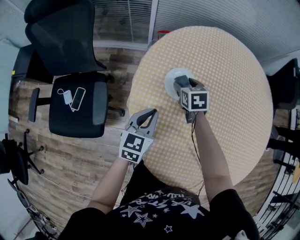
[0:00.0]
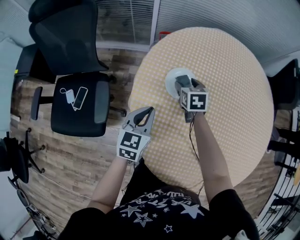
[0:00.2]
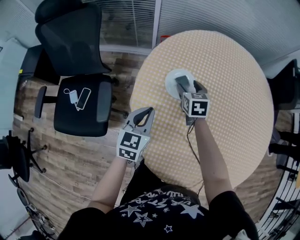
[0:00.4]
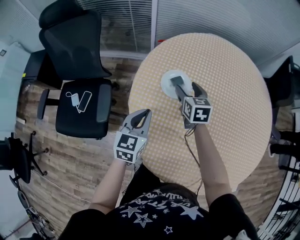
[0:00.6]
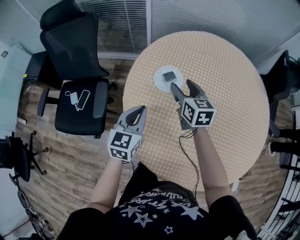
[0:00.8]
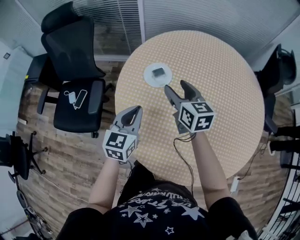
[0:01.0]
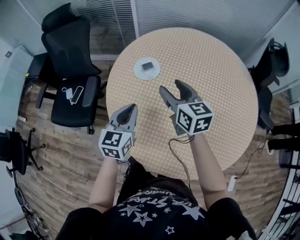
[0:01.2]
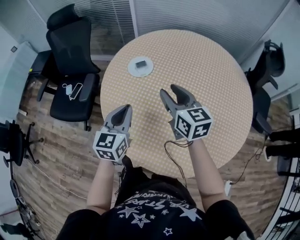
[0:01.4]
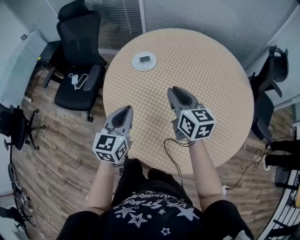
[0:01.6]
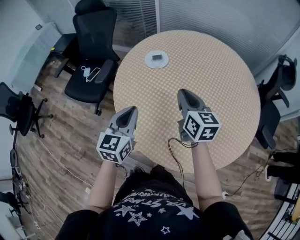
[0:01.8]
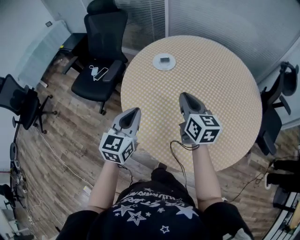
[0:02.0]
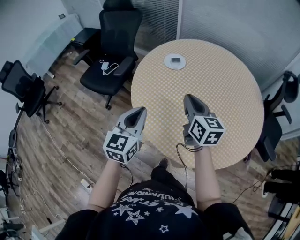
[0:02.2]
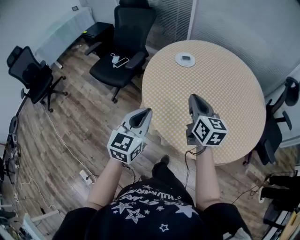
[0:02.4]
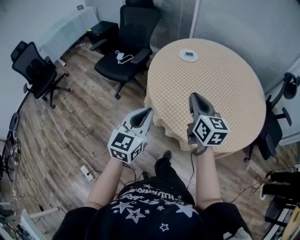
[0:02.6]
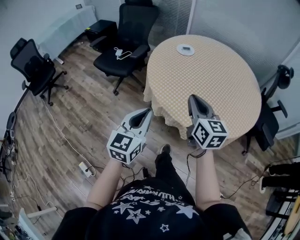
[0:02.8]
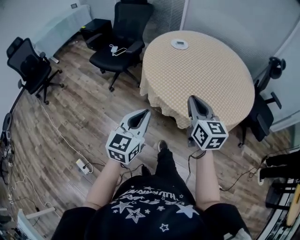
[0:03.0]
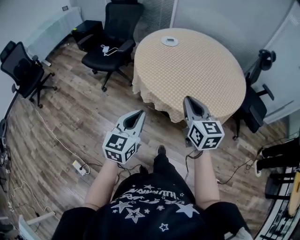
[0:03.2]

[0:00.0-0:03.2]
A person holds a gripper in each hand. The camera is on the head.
0:00.0 to 0:01.6: The left gripper is displaced backward, to the right and upward by some 30 cm, and changes its angle by some 20 degrees. Meanwhile the right gripper heads backward, upward and to the right, covering approximately 40 cm, points its fingers some 40 degrees further upward, and closes.
0:01.6 to 0:03.2: Both grippers are carried backward, approximately 40 cm.

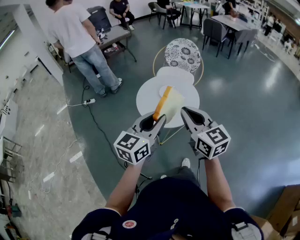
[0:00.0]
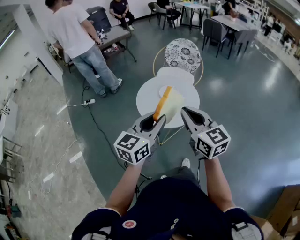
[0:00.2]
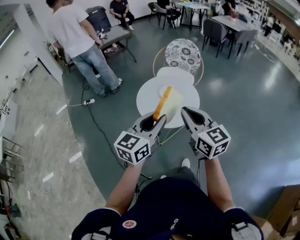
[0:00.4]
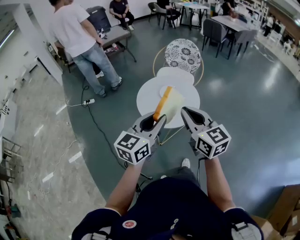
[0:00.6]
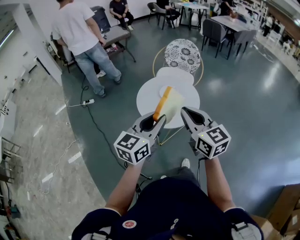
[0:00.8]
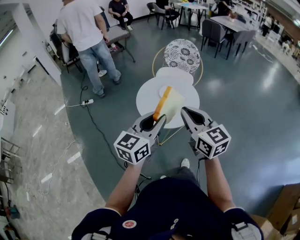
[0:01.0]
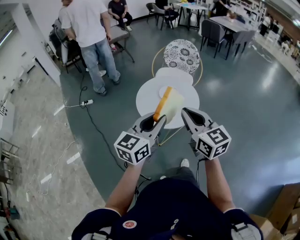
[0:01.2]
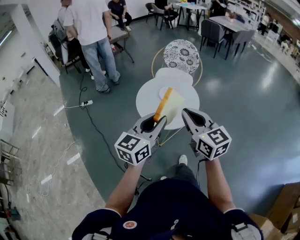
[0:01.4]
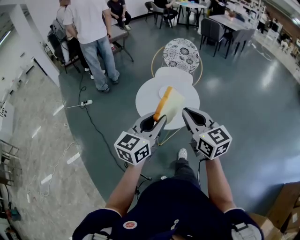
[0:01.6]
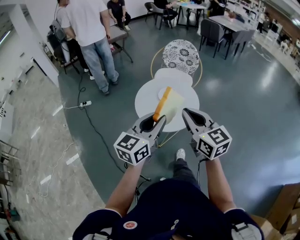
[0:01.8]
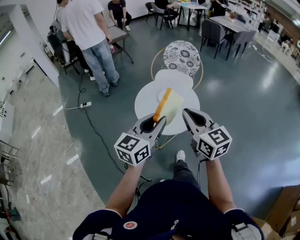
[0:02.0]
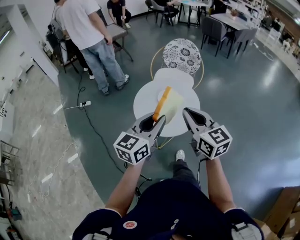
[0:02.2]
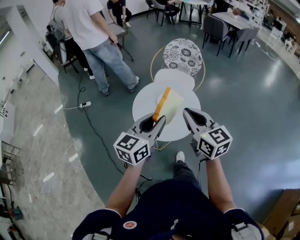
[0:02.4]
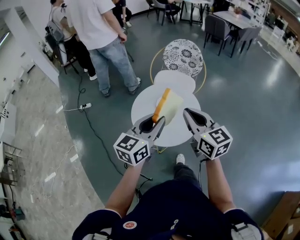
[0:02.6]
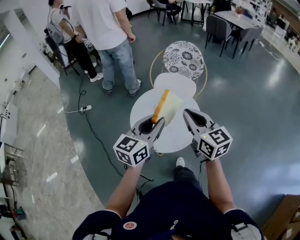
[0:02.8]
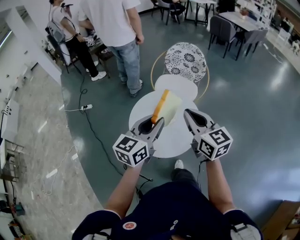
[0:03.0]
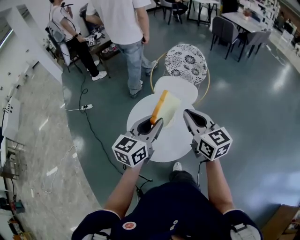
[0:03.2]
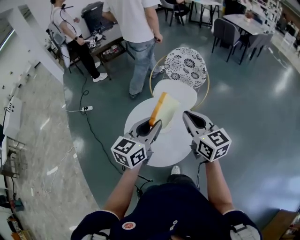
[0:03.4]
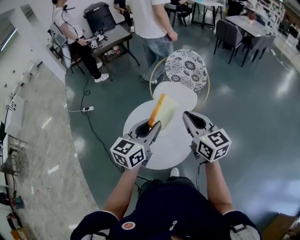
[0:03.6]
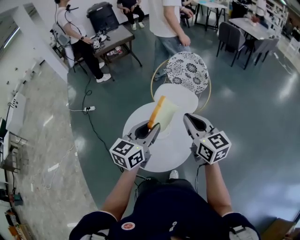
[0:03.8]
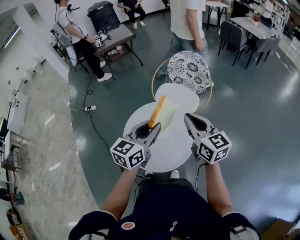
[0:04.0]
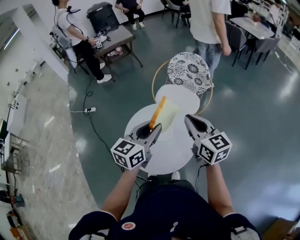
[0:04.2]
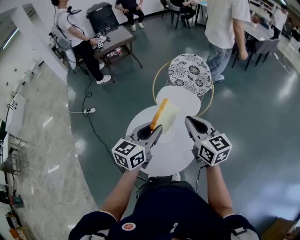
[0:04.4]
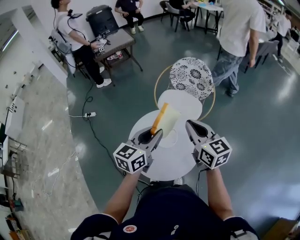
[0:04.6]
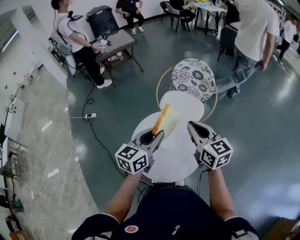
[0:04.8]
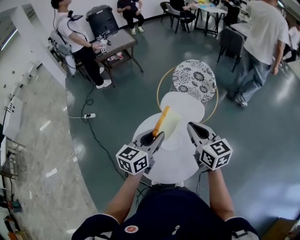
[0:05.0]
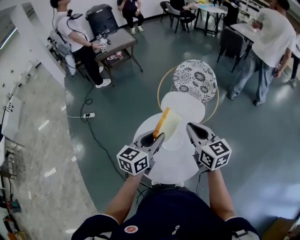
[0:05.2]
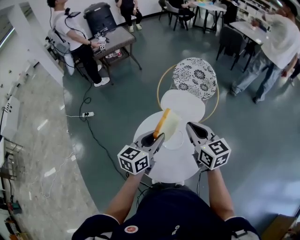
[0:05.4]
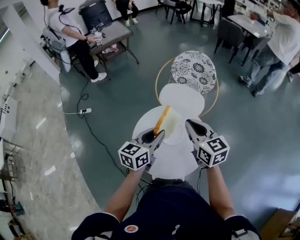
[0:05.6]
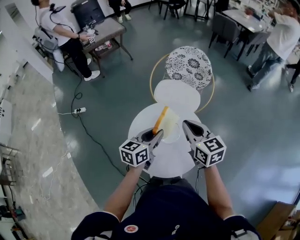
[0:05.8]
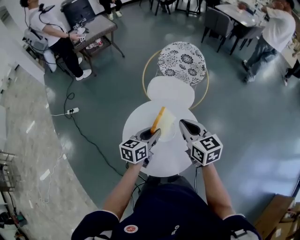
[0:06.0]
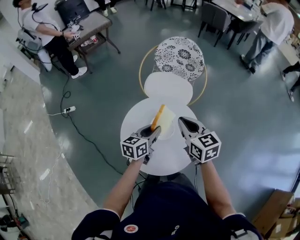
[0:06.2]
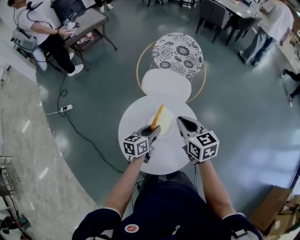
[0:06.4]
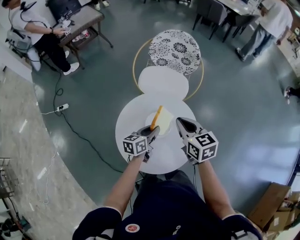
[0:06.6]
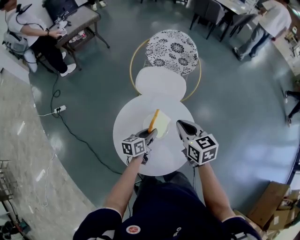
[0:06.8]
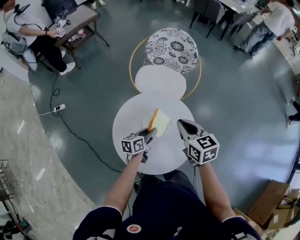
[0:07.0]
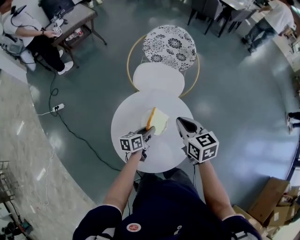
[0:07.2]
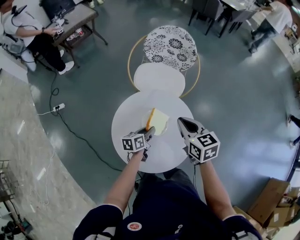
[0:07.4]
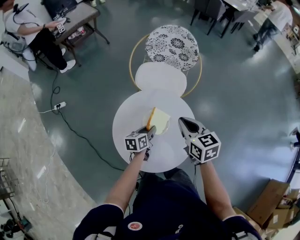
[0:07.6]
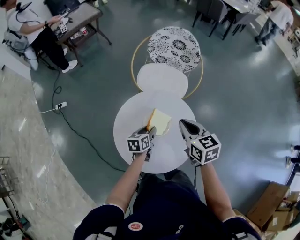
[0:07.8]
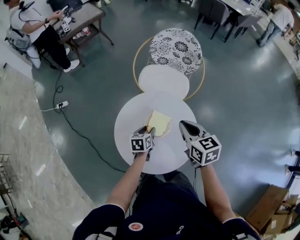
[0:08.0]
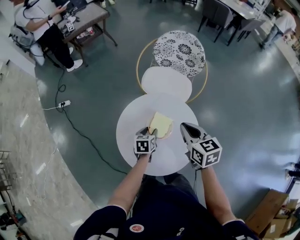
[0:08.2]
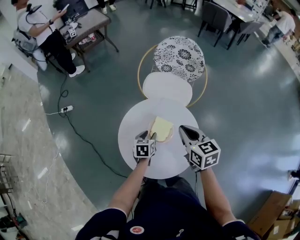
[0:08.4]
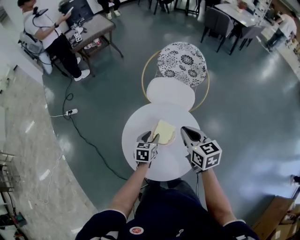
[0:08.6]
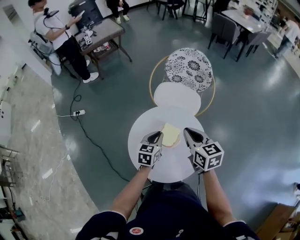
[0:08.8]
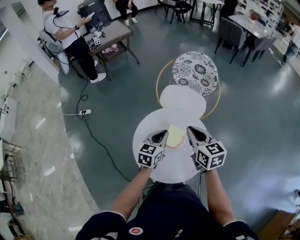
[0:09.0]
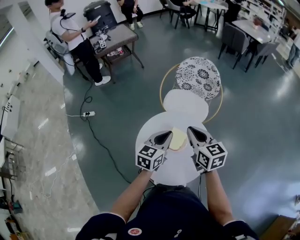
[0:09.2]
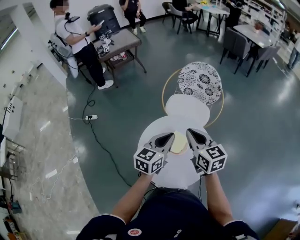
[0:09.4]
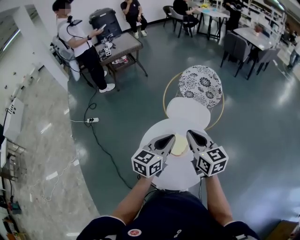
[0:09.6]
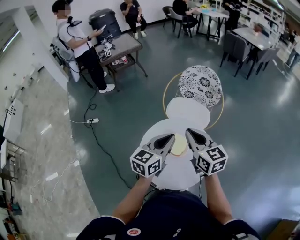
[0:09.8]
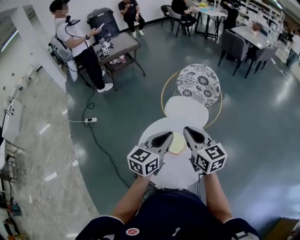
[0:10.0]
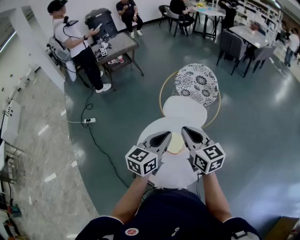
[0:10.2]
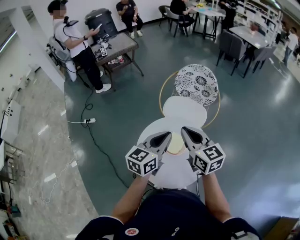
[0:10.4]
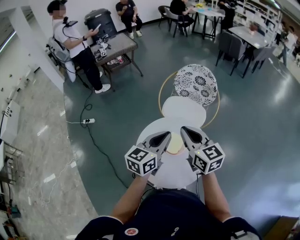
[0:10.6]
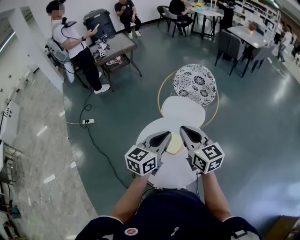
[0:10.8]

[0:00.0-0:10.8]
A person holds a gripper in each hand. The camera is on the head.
0:00.0 to 0:01.6: There are only small adjustments of the grippers.
0:01.6 to 0:03.0: The grippers both shift forward by approximately 20 cm.
0:03.0 to 0:04.6: Both grippers travel together forward, some 10 cm.
0:04.6 to 0:06.2: The right gripper shifts about 10 cm downward and to the left; the left gripper travels downward by approximately 15 cm, and swivels about 20 degrees.
0:06.2 to 0:07.8: The left gripper goes roughly 15 cm downward, and rotates some 20 degrees.
0:07.8 to 0:09.2: The right gripper is displaced upward by approximately 5 cm, while the left gripper heads upward, covering about 20 cm, rotates about 30 degrees, and closes.
0:09.2 to 0:10.8: Both grippers move upward, some 10 cm.

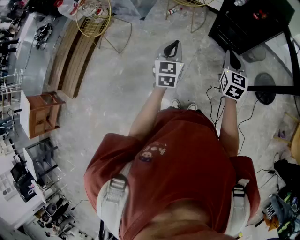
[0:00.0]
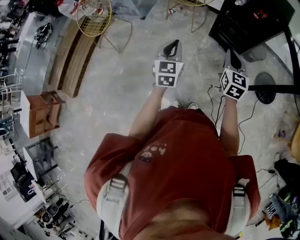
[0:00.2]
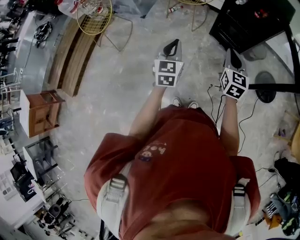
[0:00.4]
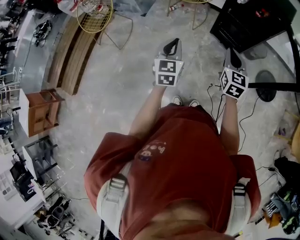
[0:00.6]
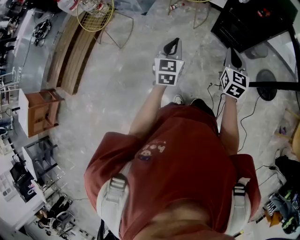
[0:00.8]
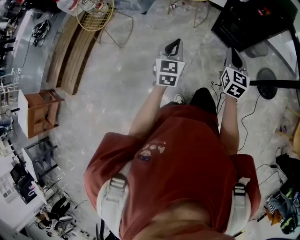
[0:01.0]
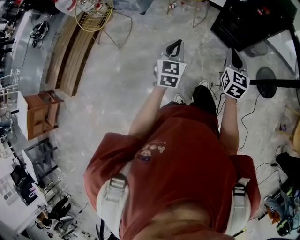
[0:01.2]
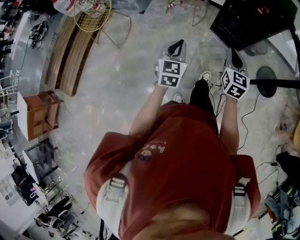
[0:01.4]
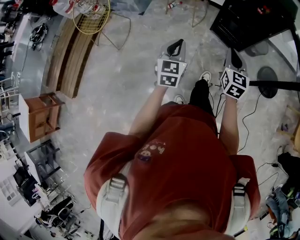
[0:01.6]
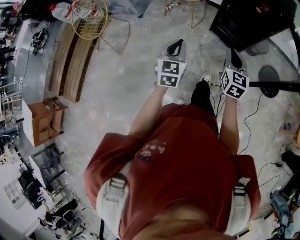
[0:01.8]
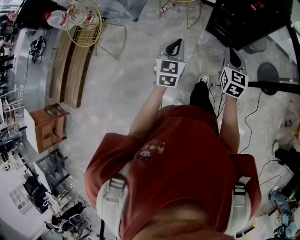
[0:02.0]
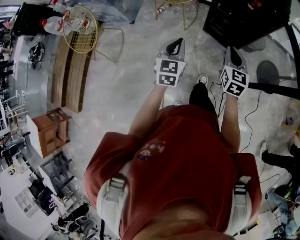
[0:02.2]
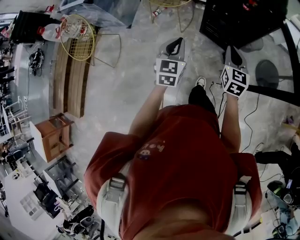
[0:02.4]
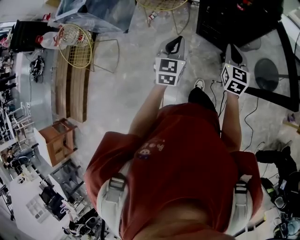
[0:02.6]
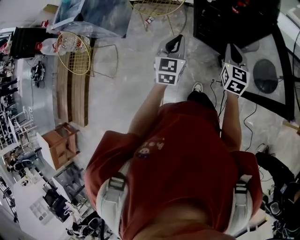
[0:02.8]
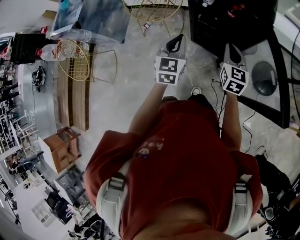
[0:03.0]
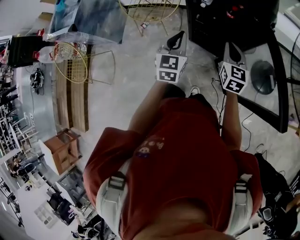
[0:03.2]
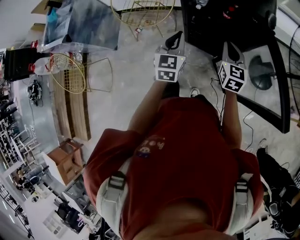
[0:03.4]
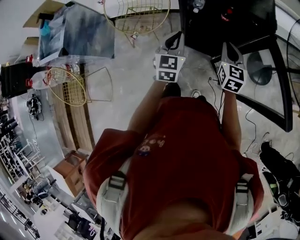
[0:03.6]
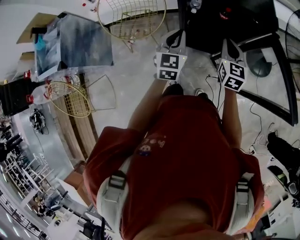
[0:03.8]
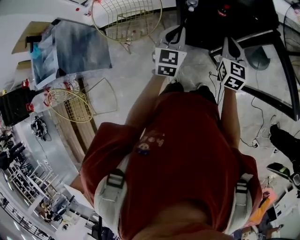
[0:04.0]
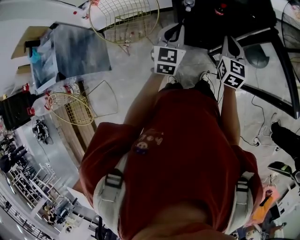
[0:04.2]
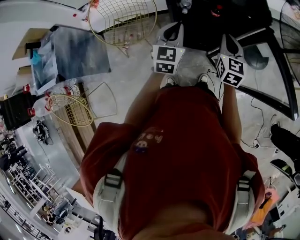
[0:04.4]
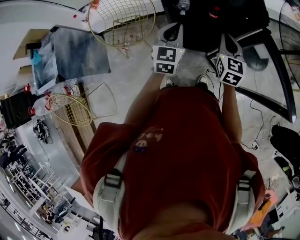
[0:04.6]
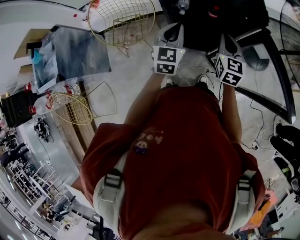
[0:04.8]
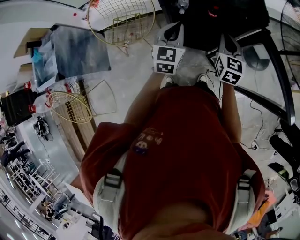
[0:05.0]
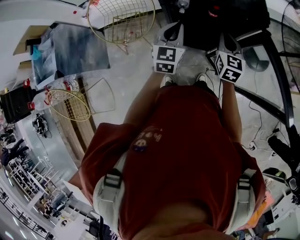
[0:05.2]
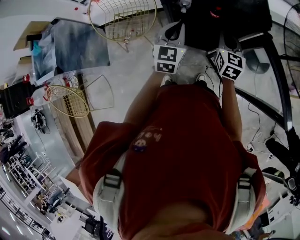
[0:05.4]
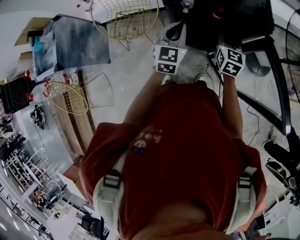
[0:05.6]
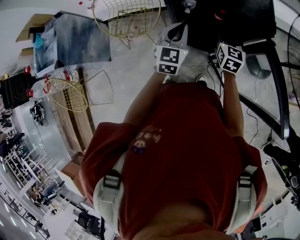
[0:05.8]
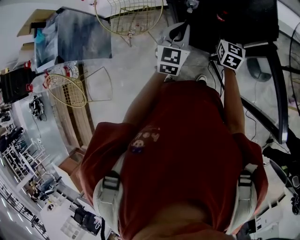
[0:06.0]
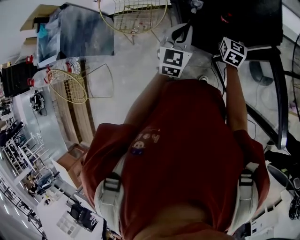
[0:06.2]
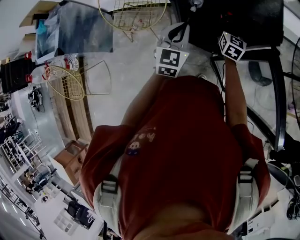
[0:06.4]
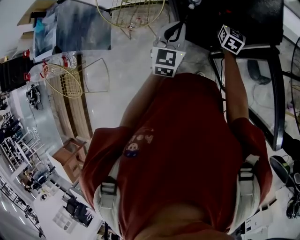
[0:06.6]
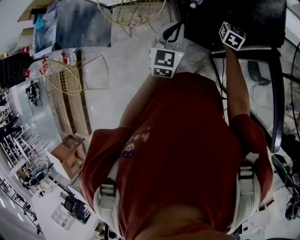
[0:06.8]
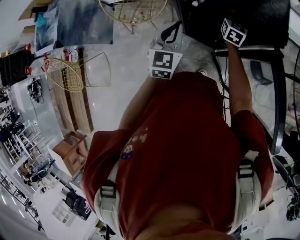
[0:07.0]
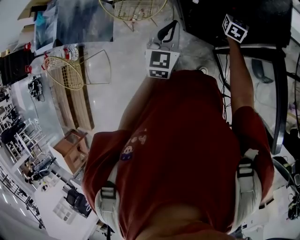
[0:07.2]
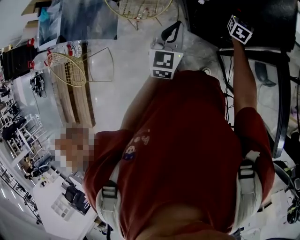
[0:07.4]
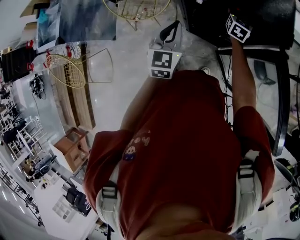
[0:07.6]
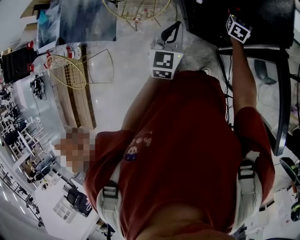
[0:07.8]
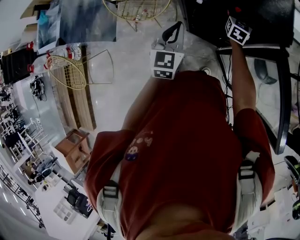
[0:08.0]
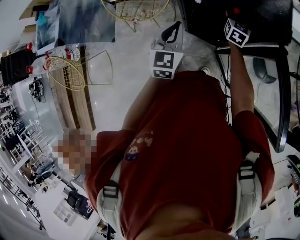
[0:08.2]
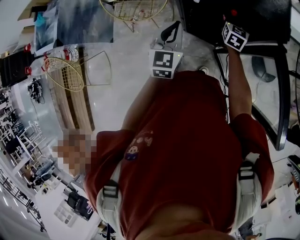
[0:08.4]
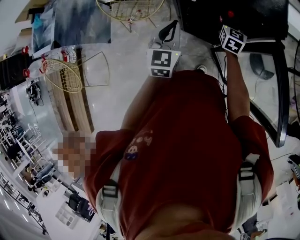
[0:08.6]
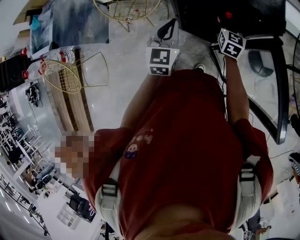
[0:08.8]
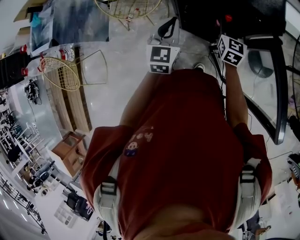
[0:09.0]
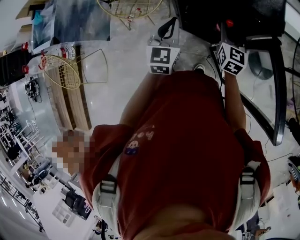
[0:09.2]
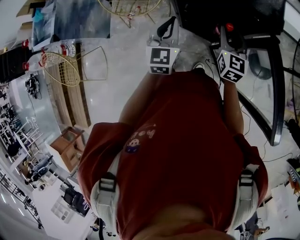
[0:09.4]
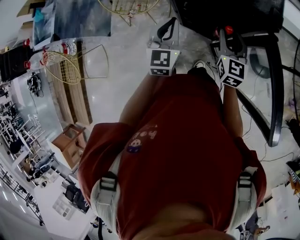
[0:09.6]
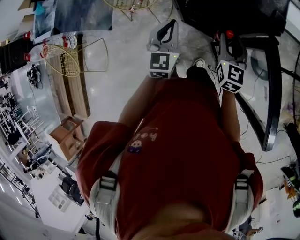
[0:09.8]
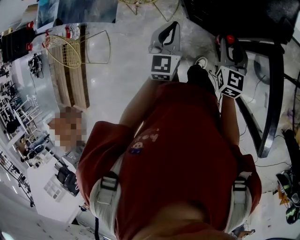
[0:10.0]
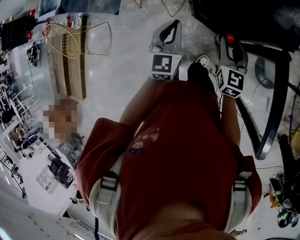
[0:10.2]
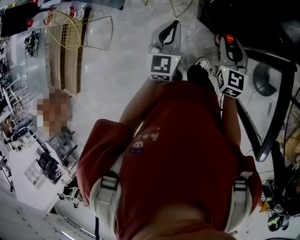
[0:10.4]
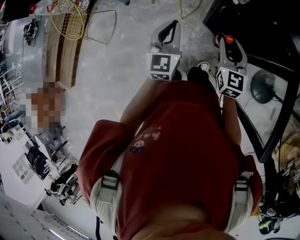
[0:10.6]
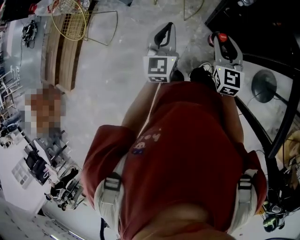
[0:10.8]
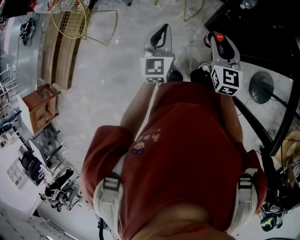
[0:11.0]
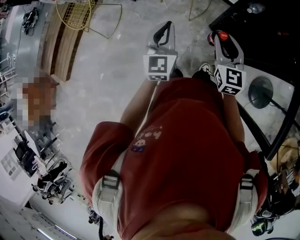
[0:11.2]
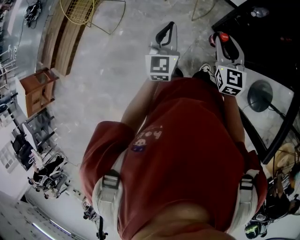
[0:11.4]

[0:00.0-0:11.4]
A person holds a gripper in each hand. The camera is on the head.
0:00.0 to 0:01.4: The right gripper heads to the left, covering roughly 5 cm. The left gripper ends up some 5 cm from where it was.
0:01.4 to 0:02.8: Both grippers move forward and to the right, about 40 cm.
0:02.8 to 0:04.2: The two grippers go some 20 cm forward. The right gripper turns by some 20 degrees. The left gripper rotates roughly 20 degrees.
0:04.2 to 0:05.6: The left gripper goes some 5 cm to the right; the right gripper goes about 10 cm forward, and opens up.
0:05.6 to 0:07.2: The right gripper is displaced forward and downward by some 20 cm, and opens.
0:07.2 to 0:08.6: The right gripper moves backward, about 5 cm.
0:08.6 to 0:10.0: The left gripper changes place by approximately 5 cm; the right gripper goes roughly 15 cm backward.
0:10.0 to 0:11.4: The right gripper ends up about 30 cm from where it was, and changes its angle by about 30 degrees; the left gripper shifts by approximately 30 cm, and changes its angle by roughly 30 degrees.
